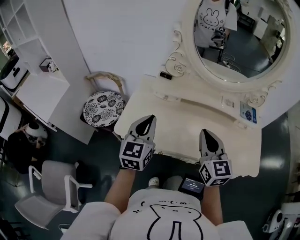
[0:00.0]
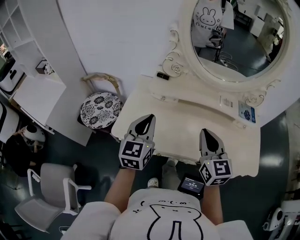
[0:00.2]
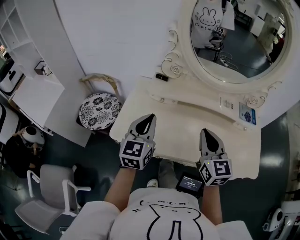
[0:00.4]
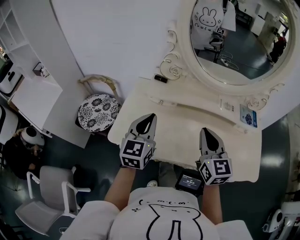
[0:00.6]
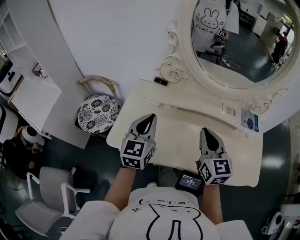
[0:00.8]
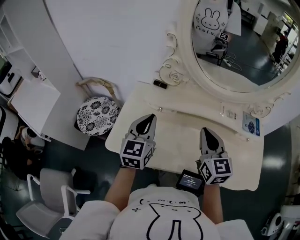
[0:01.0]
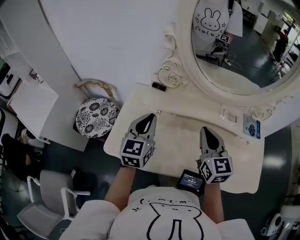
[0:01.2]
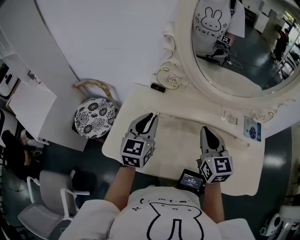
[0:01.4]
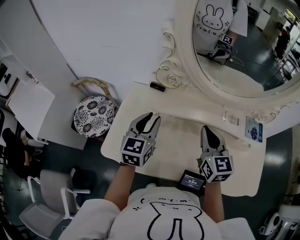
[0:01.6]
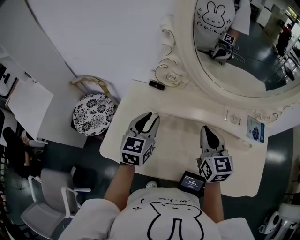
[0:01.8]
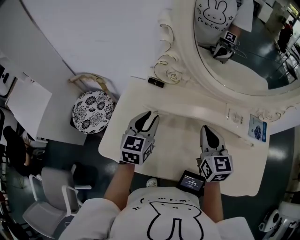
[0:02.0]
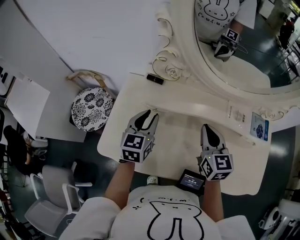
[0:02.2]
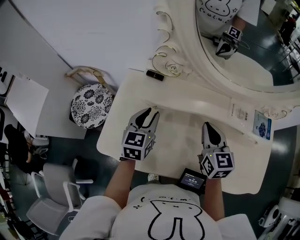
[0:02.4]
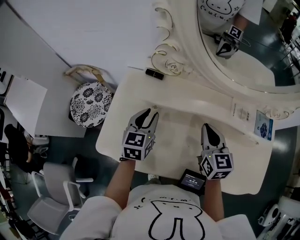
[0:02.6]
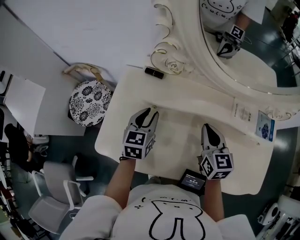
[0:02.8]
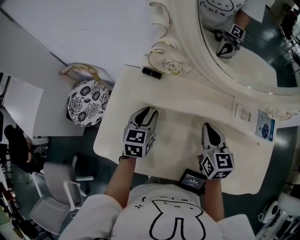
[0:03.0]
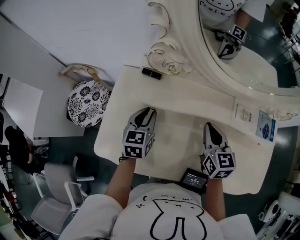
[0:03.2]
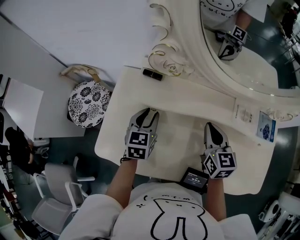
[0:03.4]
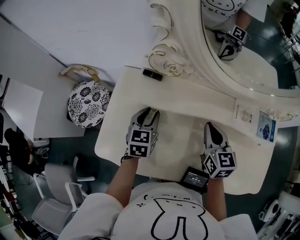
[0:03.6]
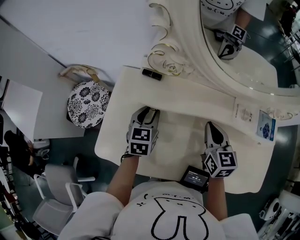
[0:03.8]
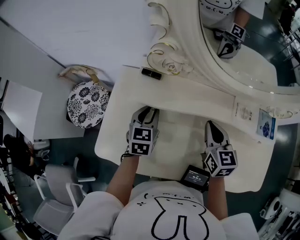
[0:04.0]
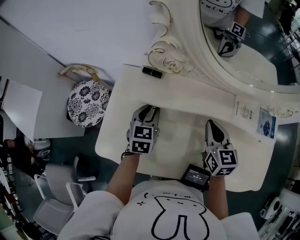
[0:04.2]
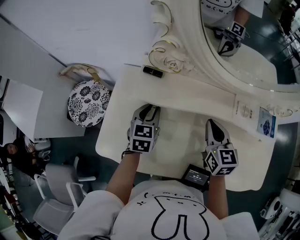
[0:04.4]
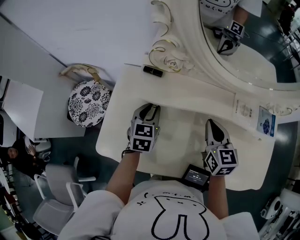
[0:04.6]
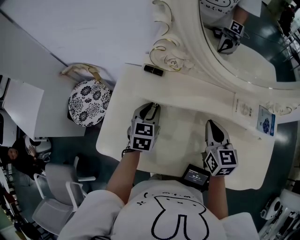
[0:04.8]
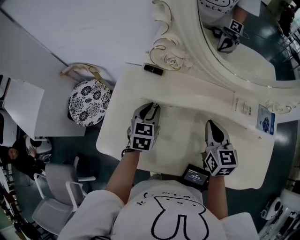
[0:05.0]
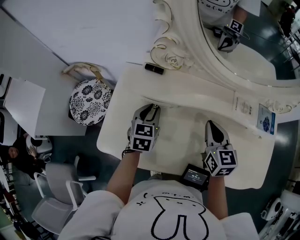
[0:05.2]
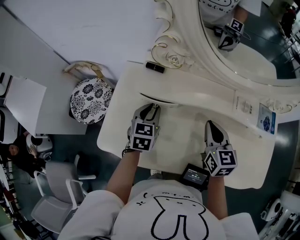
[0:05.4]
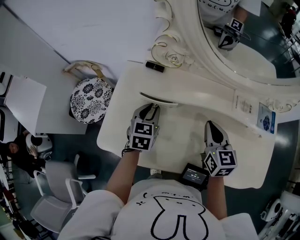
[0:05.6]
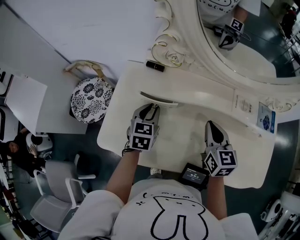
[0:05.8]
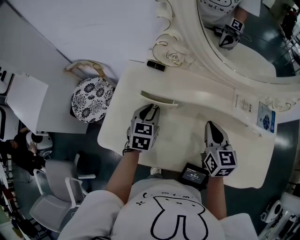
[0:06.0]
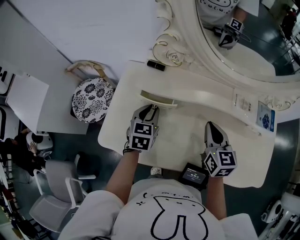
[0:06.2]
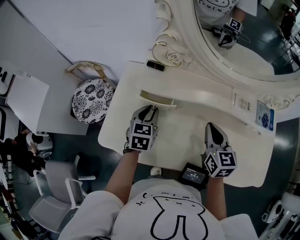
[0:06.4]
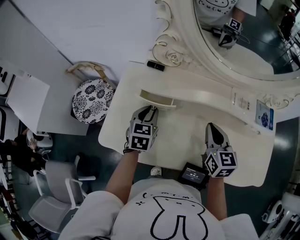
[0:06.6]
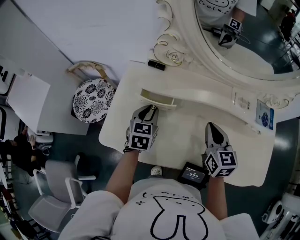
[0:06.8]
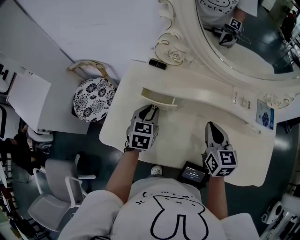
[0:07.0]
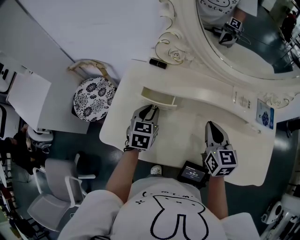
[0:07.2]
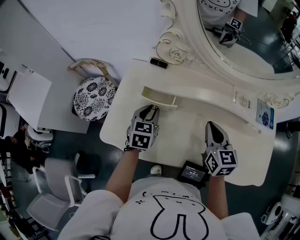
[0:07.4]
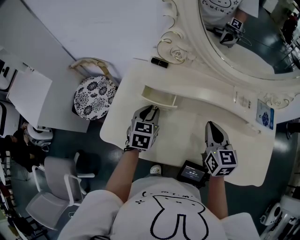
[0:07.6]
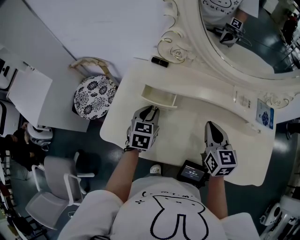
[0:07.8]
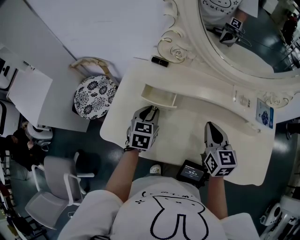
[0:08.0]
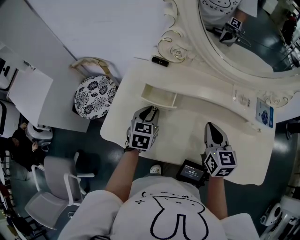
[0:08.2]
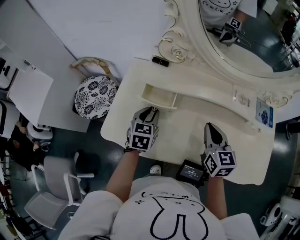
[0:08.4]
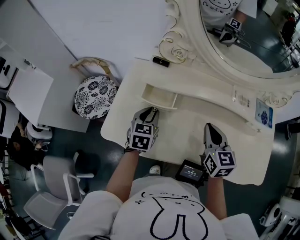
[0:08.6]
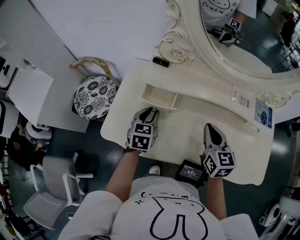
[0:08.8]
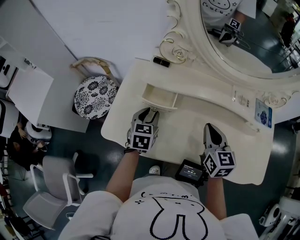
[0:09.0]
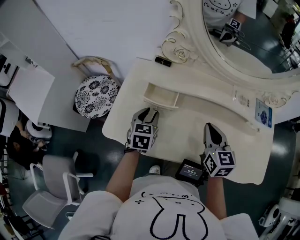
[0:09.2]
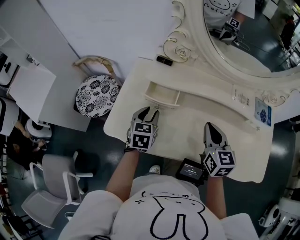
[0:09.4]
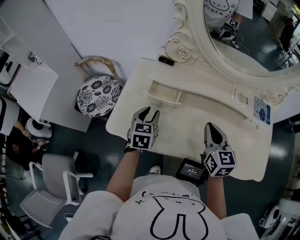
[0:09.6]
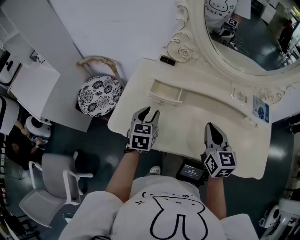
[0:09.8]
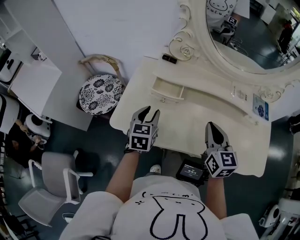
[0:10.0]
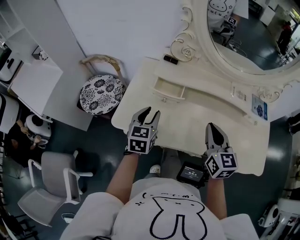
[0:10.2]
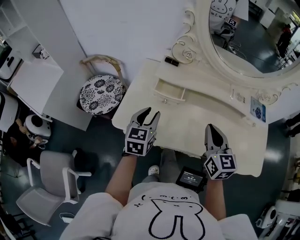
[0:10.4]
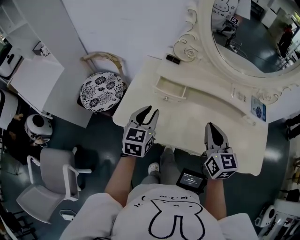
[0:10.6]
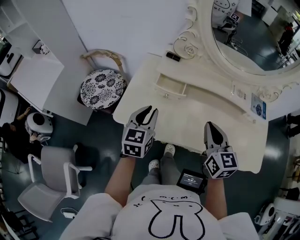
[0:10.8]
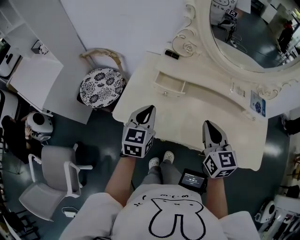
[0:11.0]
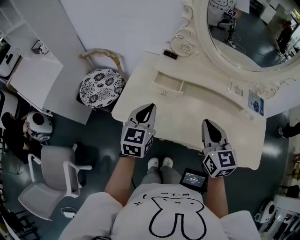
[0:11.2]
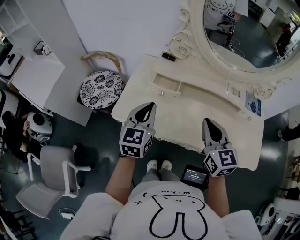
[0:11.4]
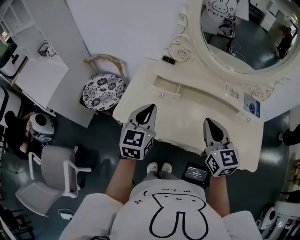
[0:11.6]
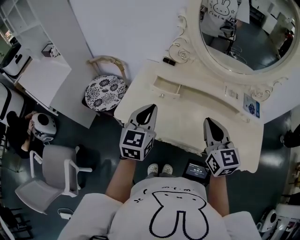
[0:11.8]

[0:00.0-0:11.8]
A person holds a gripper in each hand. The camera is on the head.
0:00.0 to 0:01.4: Both grippers travel together forward, some 15 cm.
0:01.4 to 0:03.0: Both grippers move downward, roughly 15 cm.
0:03.0 to 0:07.4: The grippers make only small movements.
0:07.4 to 0:08.8: There are only small adjustments of the grippers.
0:08.8 to 0:10.4: The two grippers go approximately 10 cm backward and upward.
0:10.4 to 0:11.8: The right gripper heads upward, covering approximately 5 cm. Meanwhile the left gripper is displaced upward and backward by some 15 cm, and closes its fingers.

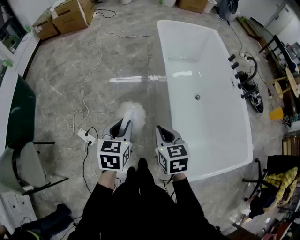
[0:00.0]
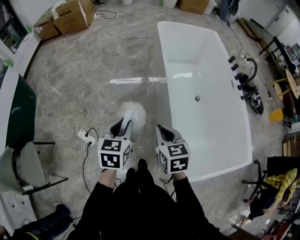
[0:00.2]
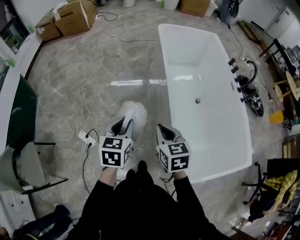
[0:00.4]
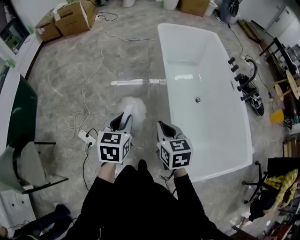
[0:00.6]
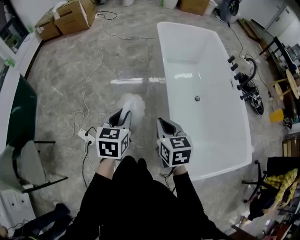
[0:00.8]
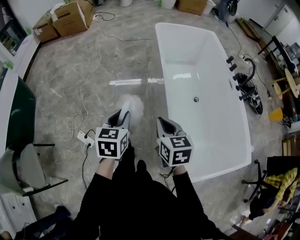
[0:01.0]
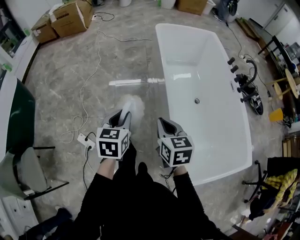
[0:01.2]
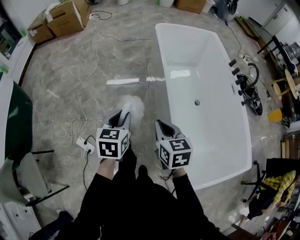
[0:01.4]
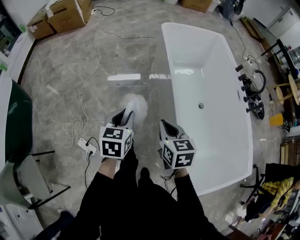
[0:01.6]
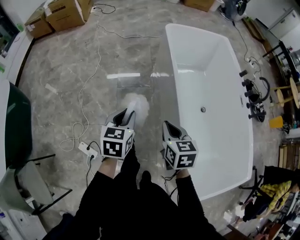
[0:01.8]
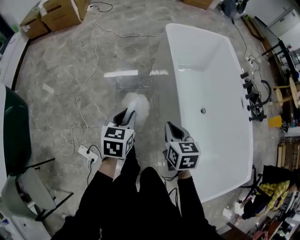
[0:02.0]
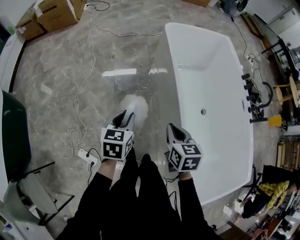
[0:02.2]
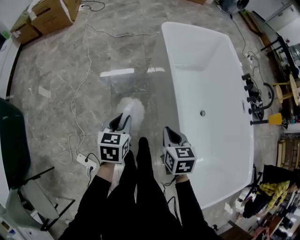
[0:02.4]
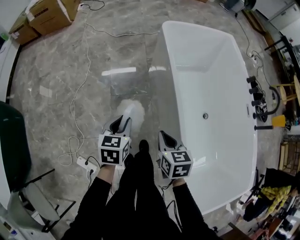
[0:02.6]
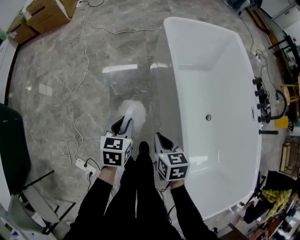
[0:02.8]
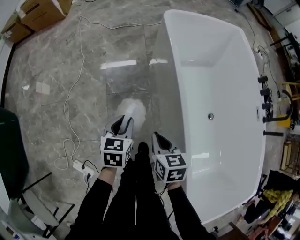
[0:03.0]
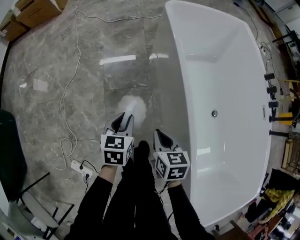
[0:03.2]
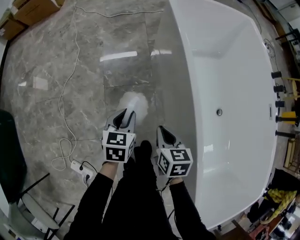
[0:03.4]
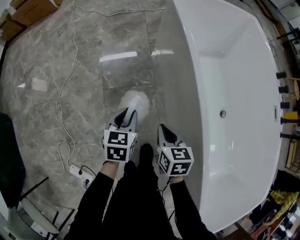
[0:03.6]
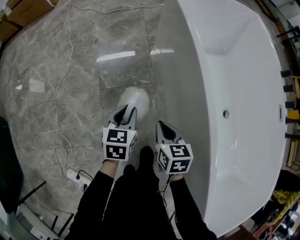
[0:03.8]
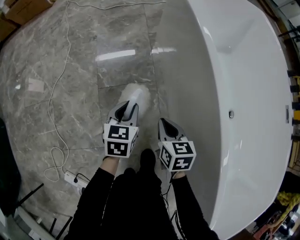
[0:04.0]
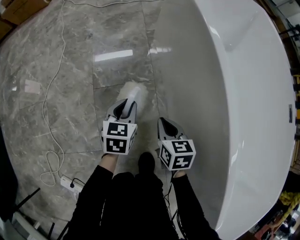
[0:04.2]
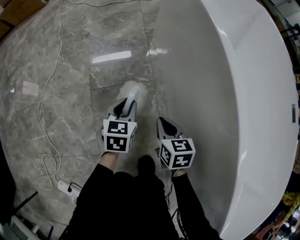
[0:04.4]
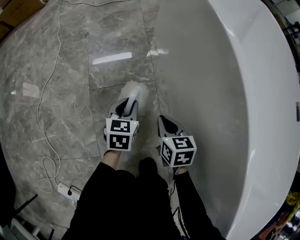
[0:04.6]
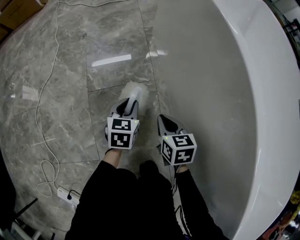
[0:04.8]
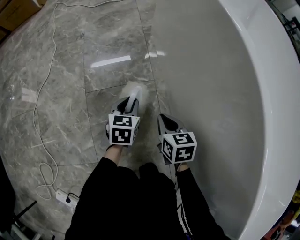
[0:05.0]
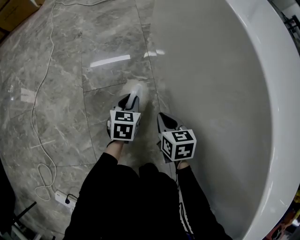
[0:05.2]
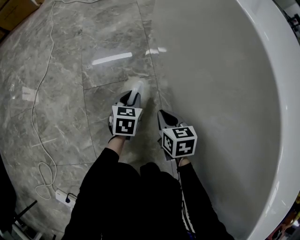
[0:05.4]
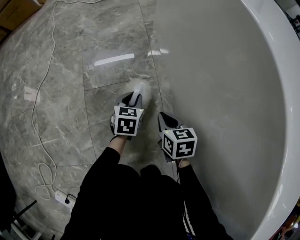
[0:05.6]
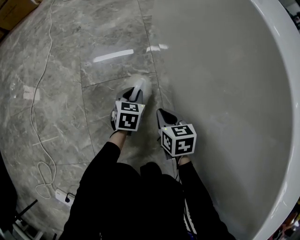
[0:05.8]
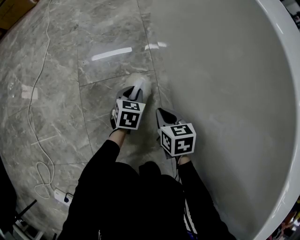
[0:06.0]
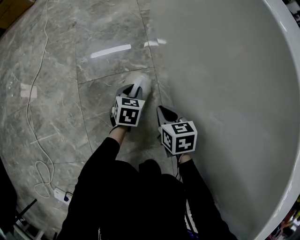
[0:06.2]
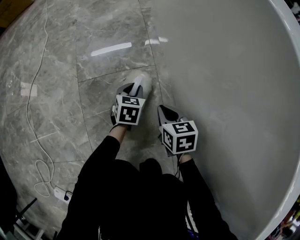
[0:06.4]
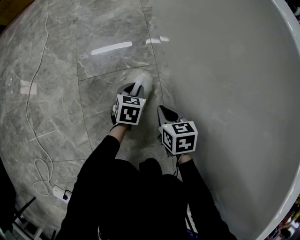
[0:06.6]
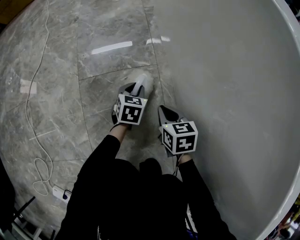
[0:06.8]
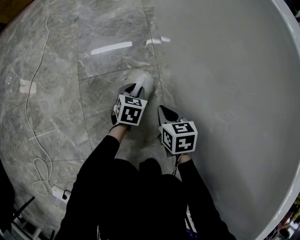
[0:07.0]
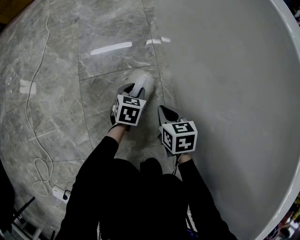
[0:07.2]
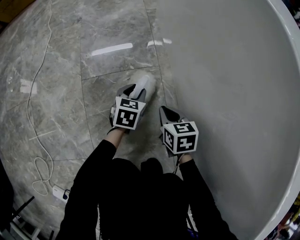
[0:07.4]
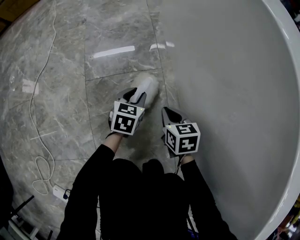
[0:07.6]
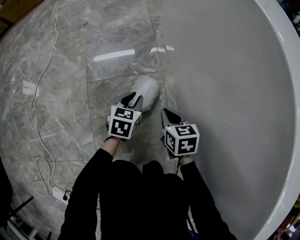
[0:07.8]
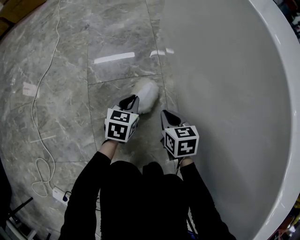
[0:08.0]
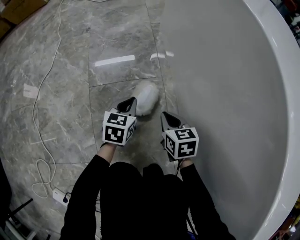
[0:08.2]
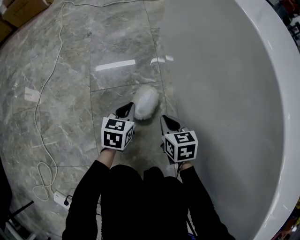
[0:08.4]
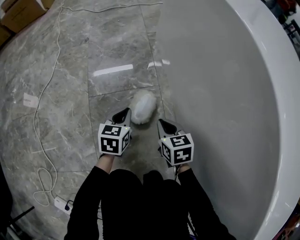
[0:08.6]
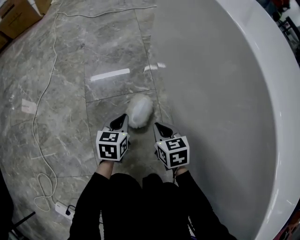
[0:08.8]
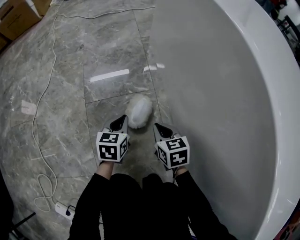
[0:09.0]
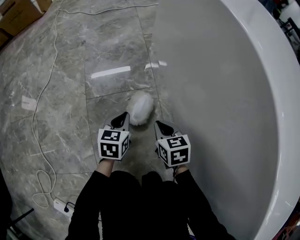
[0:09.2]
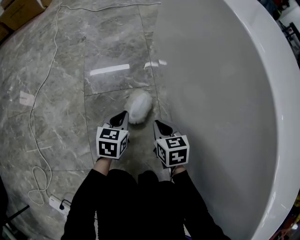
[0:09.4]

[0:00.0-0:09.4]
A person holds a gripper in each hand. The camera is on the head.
0:00.0 to 0:01.6: The grippers both shift forward by some 15 cm.
0:01.6 to 0:03.2: The left gripper goes about 35 cm forward and downward; the right gripper shifts roughly 35 cm downward and forward.
0:03.2 to 0:04.8: Both grippers move downward, about 35 cm.
0:04.8 to 0:06.2: Both grippers move downward, roughly 10 cm.
0:06.2 to 0:07.8: The left gripper ends up some 5 cm from where it was.
0:07.8 to 0:09.4: The left gripper ends up about 5 cm from where it was, and closes its fingers.

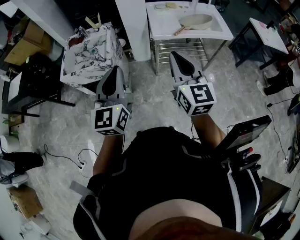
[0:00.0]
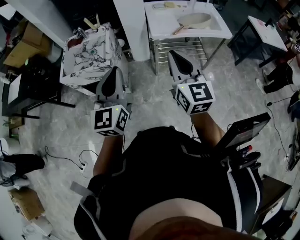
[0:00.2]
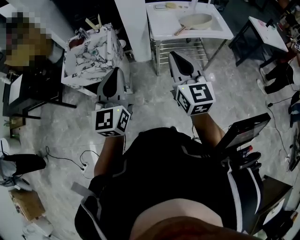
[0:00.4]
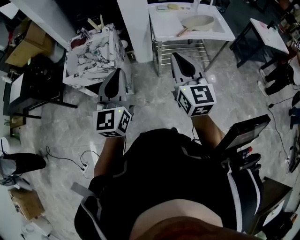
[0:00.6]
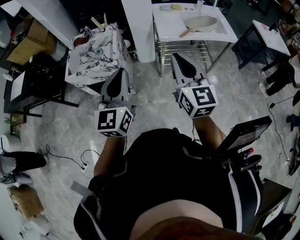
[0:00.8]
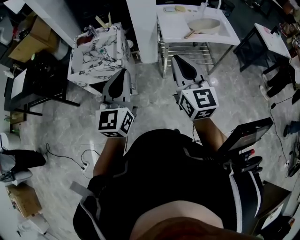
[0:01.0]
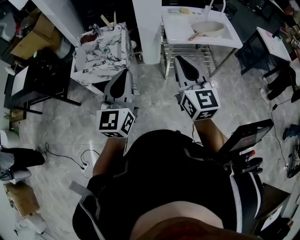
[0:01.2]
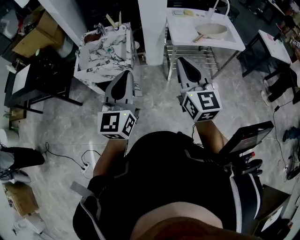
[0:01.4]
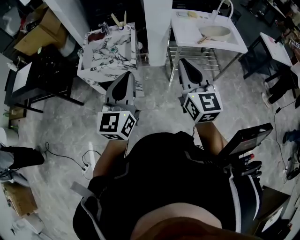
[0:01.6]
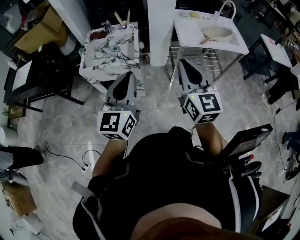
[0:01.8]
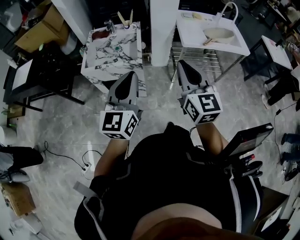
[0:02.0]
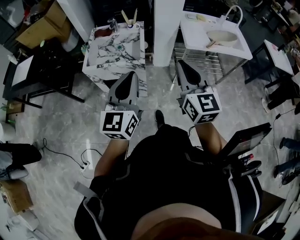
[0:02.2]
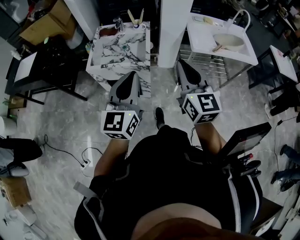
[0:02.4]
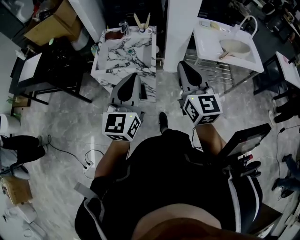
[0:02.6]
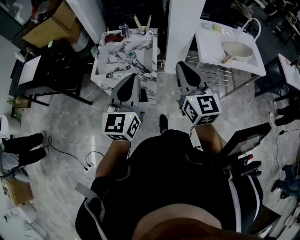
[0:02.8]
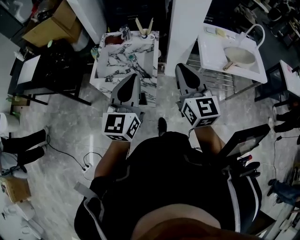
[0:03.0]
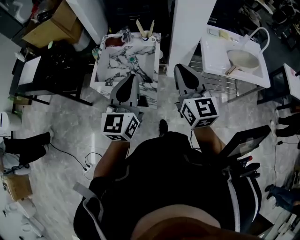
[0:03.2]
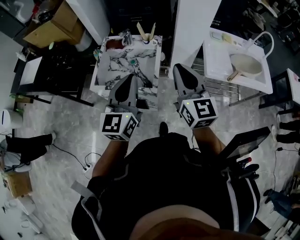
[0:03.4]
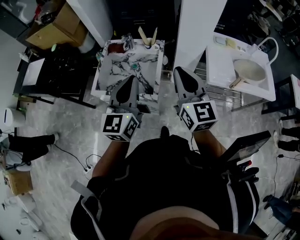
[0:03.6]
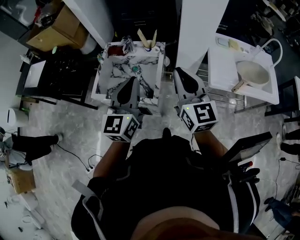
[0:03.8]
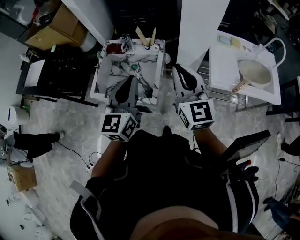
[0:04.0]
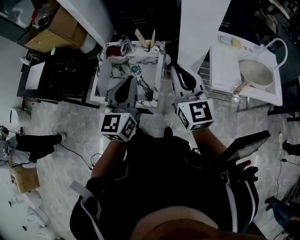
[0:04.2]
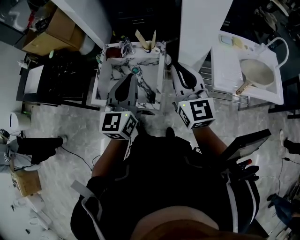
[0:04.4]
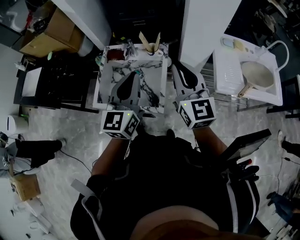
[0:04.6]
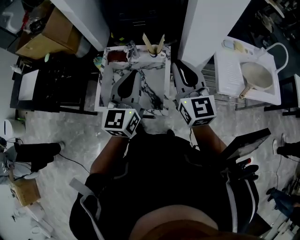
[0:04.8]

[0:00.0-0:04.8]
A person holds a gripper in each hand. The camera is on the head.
0:00.0 to 0:01.6: Both grippers move to the left, some 10 cm.
0:01.6 to 0:03.2: The grippers both shift forward and to the left by approximately 20 cm.
0:03.2 to 0:04.8: The grippers both shift forward by about 20 cm.
